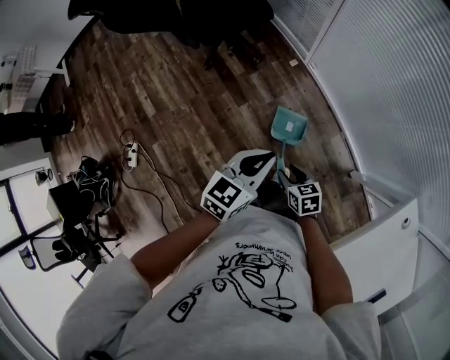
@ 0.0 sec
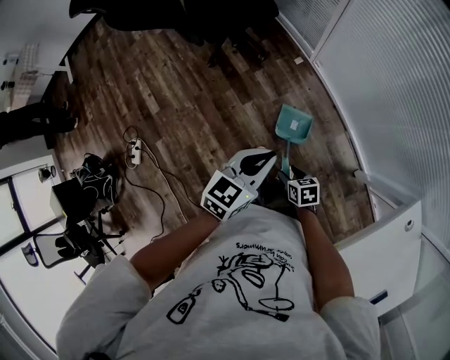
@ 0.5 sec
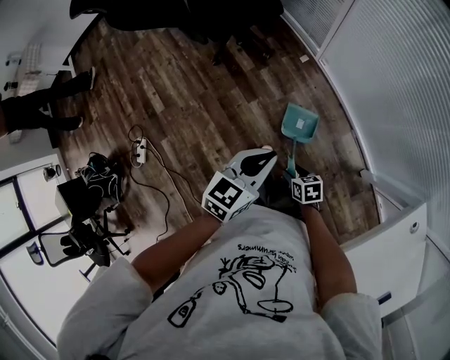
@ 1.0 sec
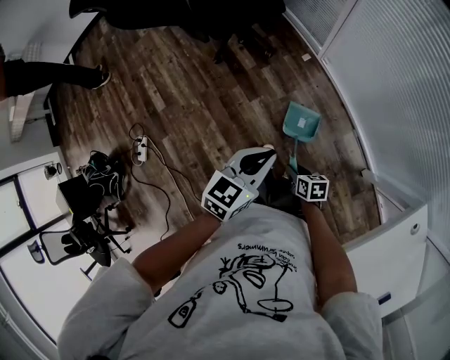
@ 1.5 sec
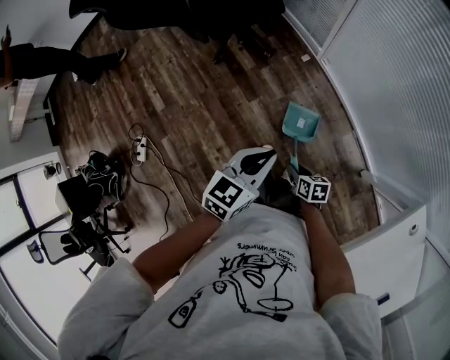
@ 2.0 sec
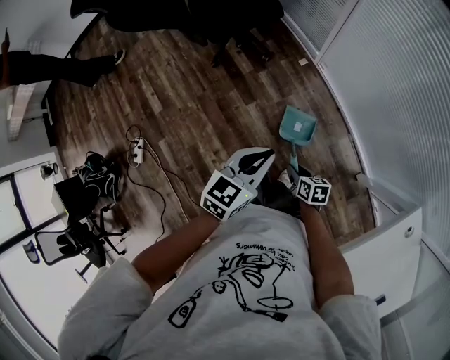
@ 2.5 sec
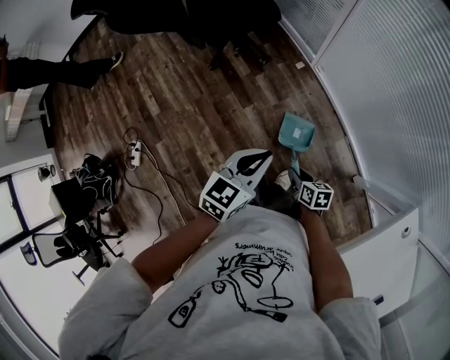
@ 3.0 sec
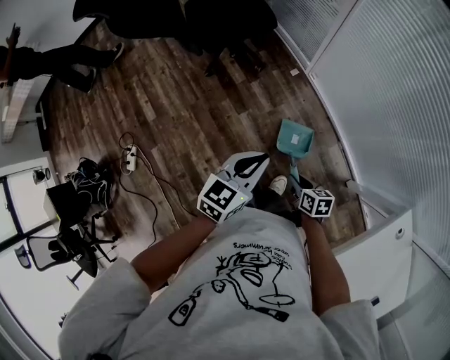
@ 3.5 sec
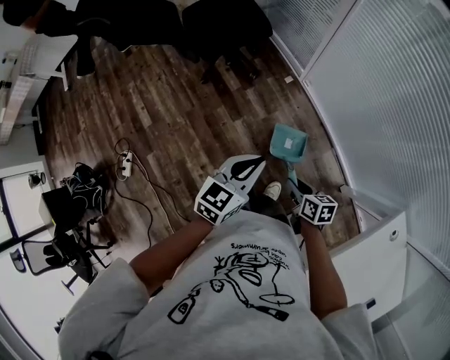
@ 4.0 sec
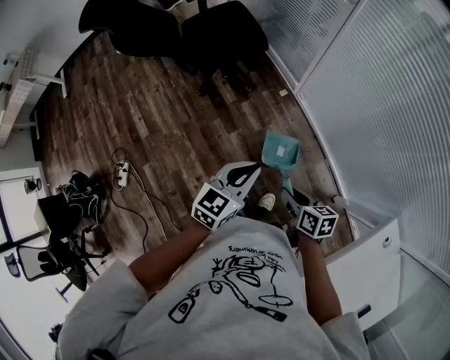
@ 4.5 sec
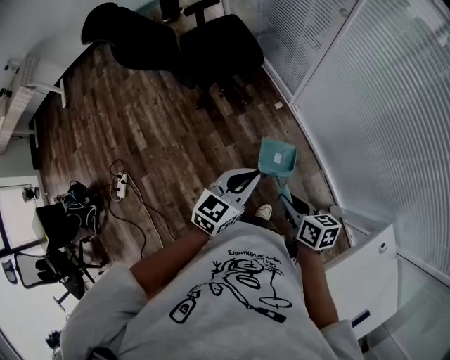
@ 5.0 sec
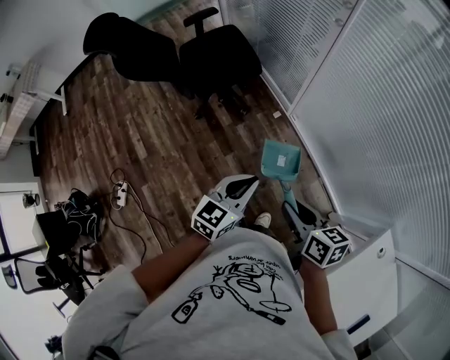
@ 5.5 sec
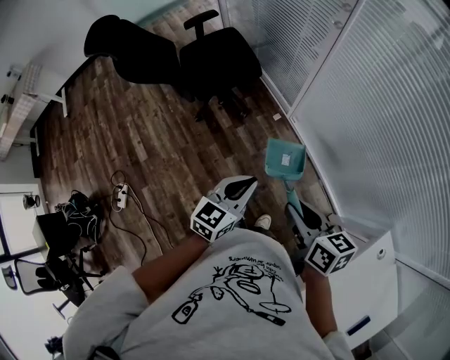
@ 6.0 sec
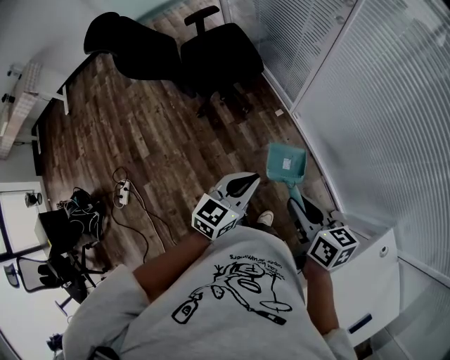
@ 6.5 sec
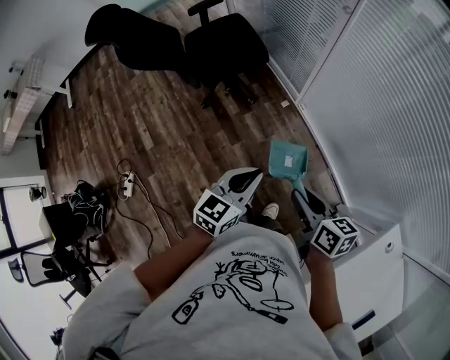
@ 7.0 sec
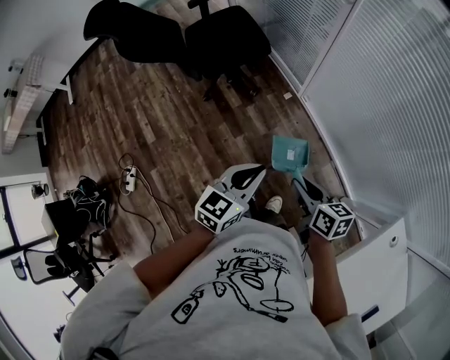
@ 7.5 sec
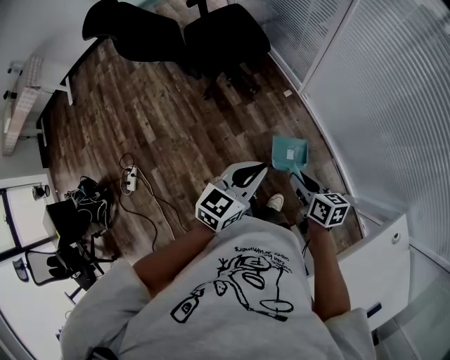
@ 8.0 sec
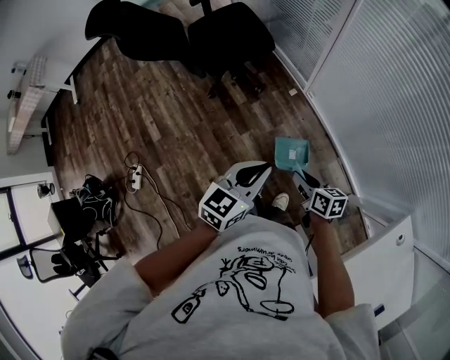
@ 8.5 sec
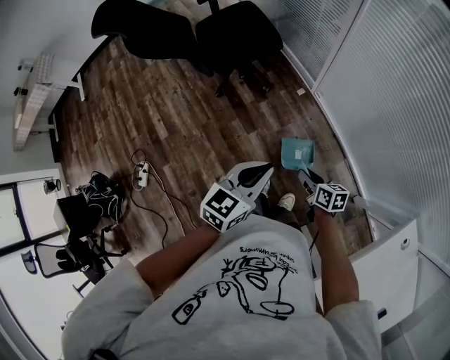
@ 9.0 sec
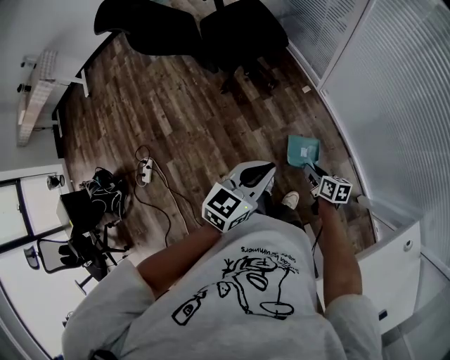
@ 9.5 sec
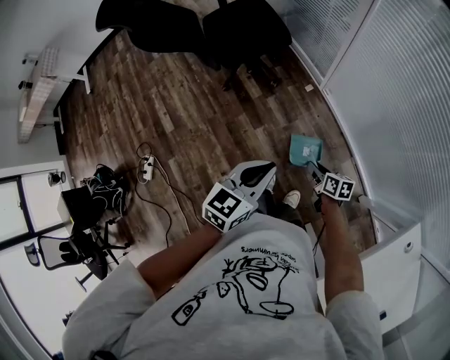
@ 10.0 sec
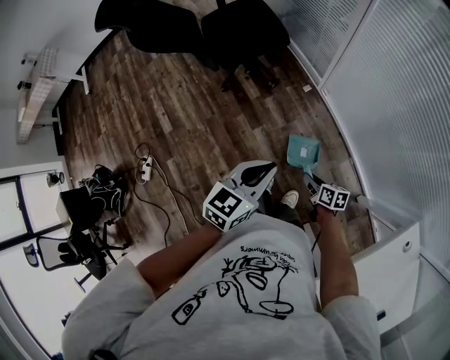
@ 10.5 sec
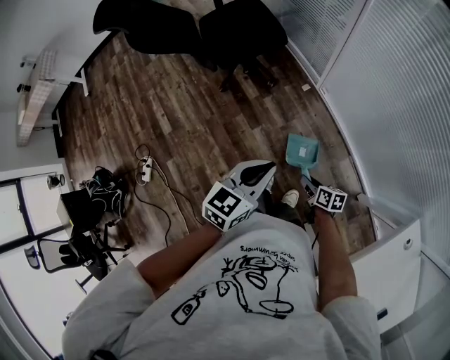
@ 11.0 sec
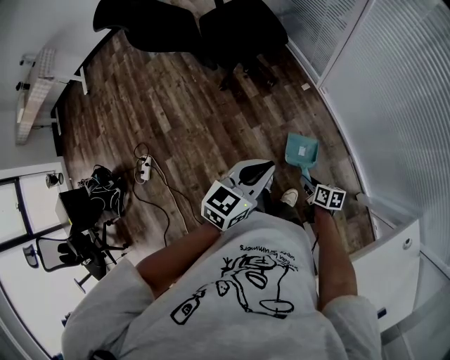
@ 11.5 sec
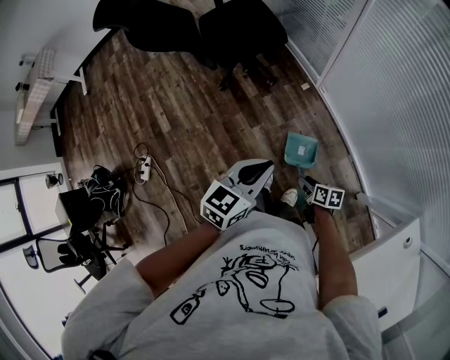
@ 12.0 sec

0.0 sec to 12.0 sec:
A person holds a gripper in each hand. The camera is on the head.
0.0 sec to 2.0 sec: The right gripper shifts about 10 cm downward, and changes its angle by about 20 degrees.
2.0 sec to 4.0 sec: The right gripper goes about 10 cm upward.
4.0 sec to 6.0 sec: The right gripper travels upward by roughly 25 cm, while the left gripper moves about 5 cm.
6.0 sec to 8.0 sec: The right gripper shifts about 15 cm downward.
8.0 sec to 10.0 sec: The right gripper shifts roughly 15 cm downward.
10.0 sec to 12.0 sec: The right gripper heads backward, covering about 5 cm.

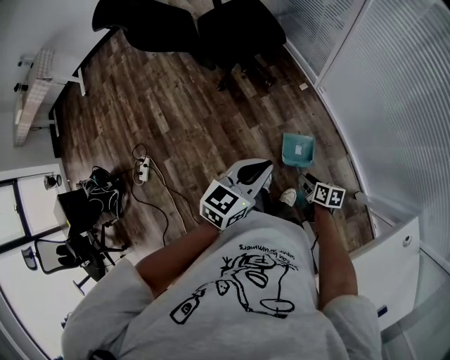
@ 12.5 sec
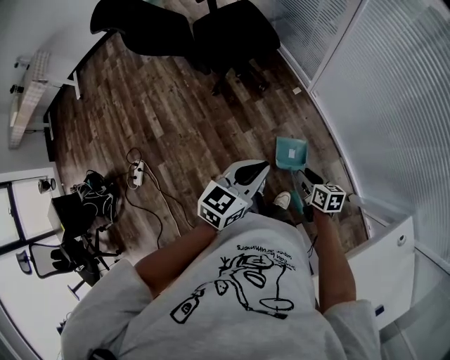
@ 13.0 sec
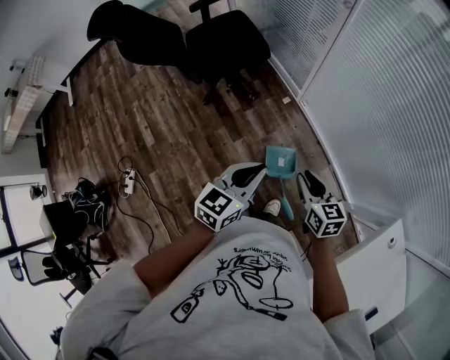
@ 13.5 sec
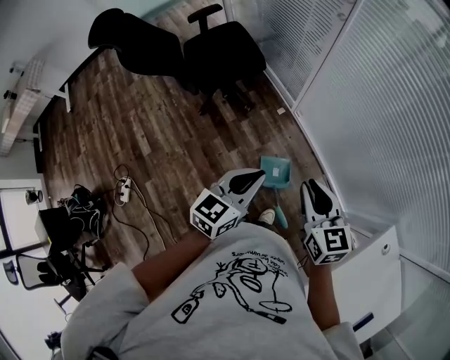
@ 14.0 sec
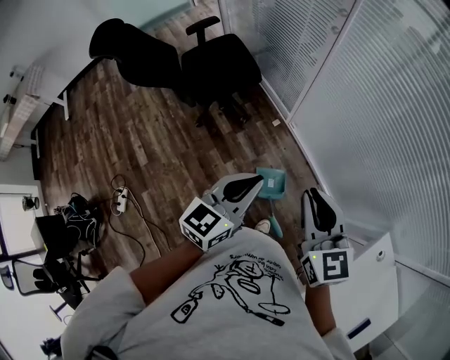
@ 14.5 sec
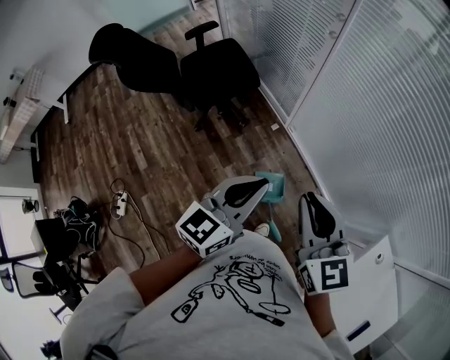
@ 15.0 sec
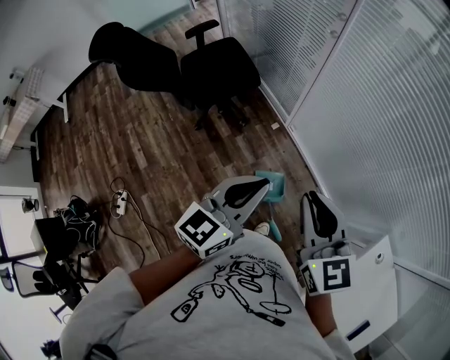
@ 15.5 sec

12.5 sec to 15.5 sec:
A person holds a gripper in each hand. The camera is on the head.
12.5 sec to 14.0 sec: The right gripper shifts about 35 cm upward, and rotates some 50 degrees; the left gripper heads upward, covering approximately 5 cm.
14.0 sec to 15.5 sec: Both grippers travel together upward, roughly 10 cm.

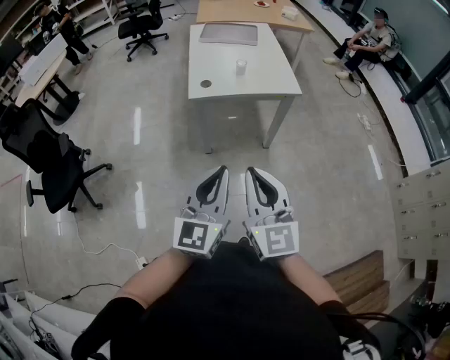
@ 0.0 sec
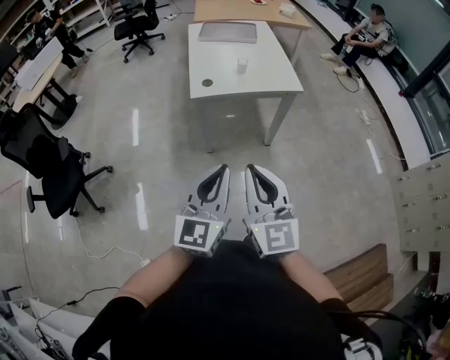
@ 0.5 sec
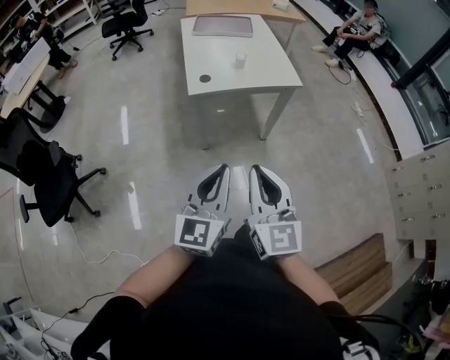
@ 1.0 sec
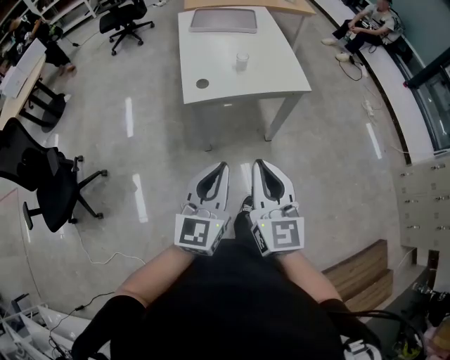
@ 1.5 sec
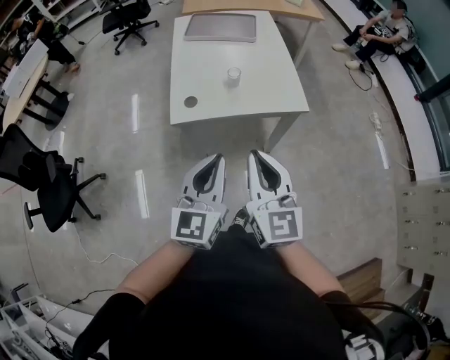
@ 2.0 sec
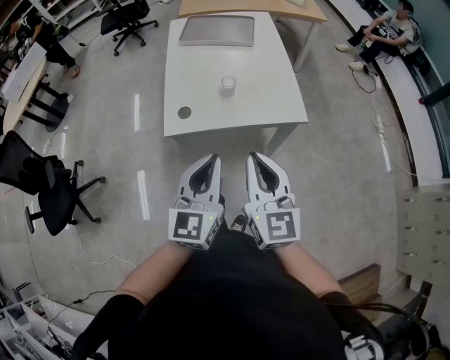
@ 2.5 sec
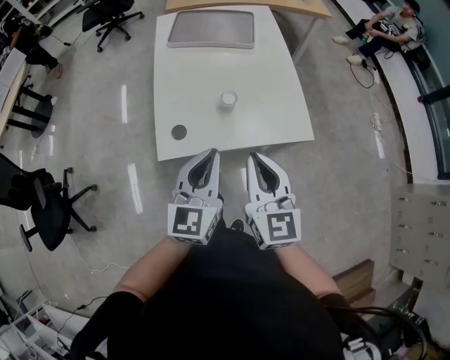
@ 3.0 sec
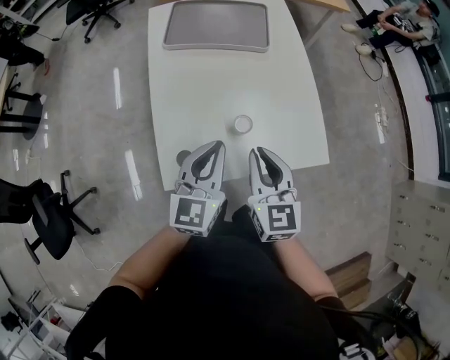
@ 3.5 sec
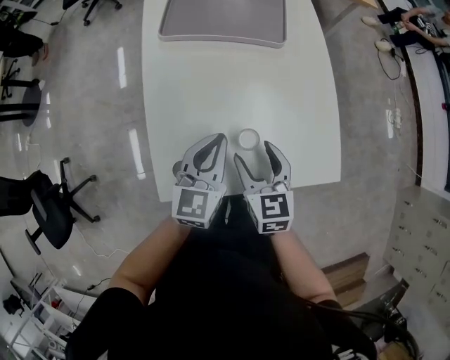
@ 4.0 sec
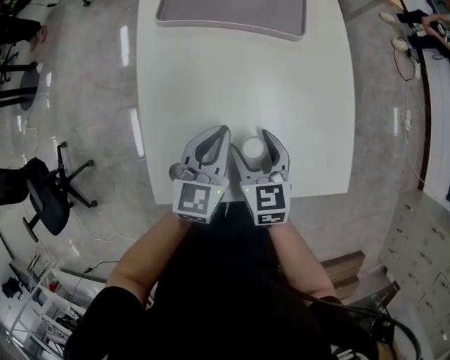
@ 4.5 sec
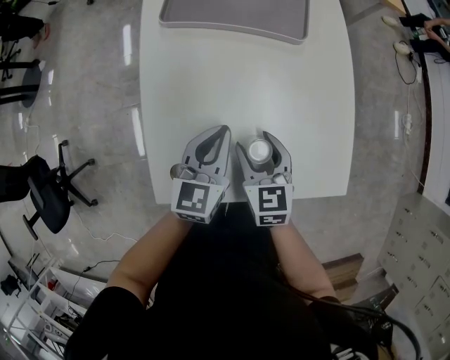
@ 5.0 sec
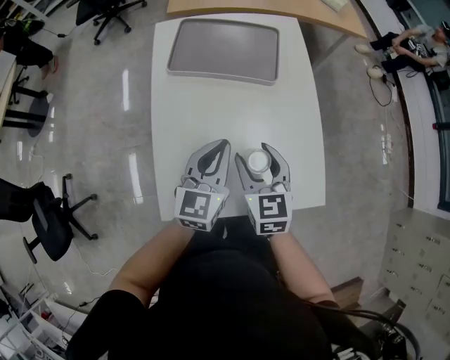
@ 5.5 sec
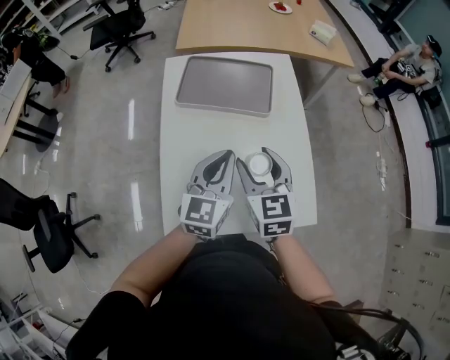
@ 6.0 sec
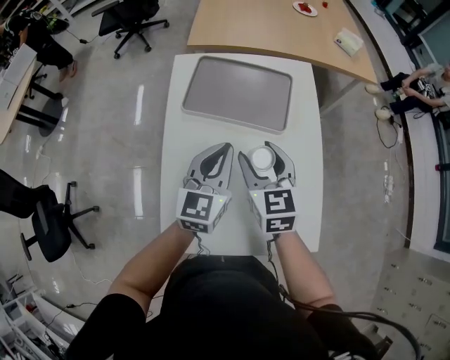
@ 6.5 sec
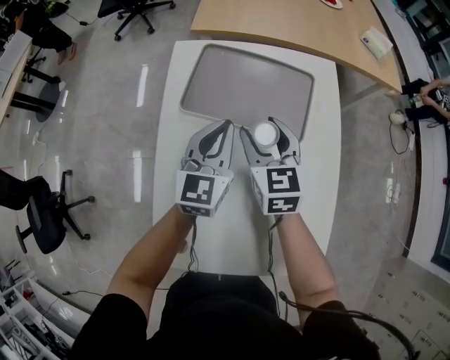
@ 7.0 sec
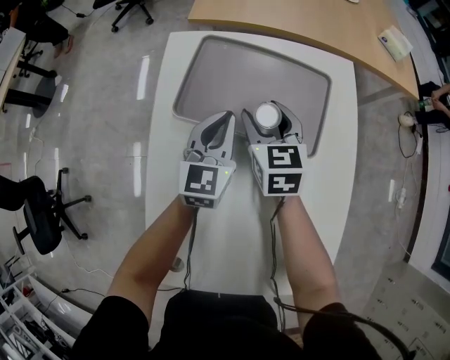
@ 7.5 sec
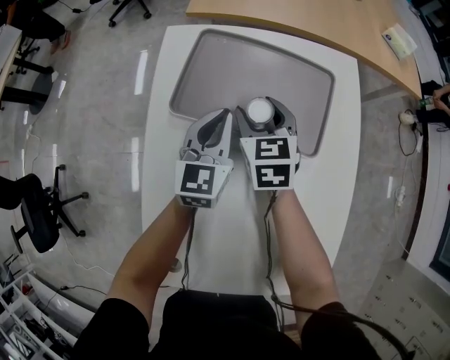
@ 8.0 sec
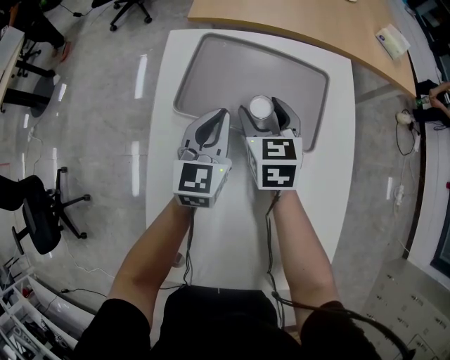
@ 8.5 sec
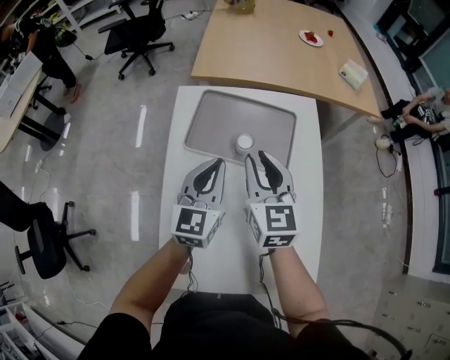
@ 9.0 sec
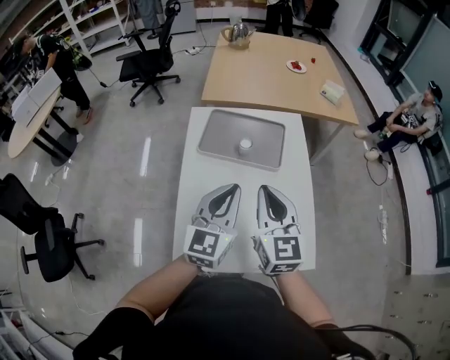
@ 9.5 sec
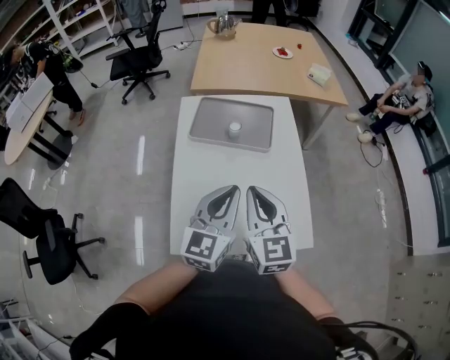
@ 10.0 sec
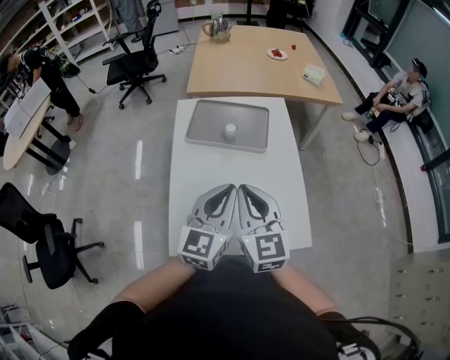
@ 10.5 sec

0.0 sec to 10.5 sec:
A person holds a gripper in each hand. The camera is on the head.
0.0 sec to 2.0 sec: The two grippers go some 30 cm forward.
2.0 sec to 4.0 sec: Both grippers are carried forward, roughly 50 cm. The two grippers go approximately 25 cm downward. The right gripper tilts its fingers some 30 degrees downward, and opens its fingers.
4.0 sec to 6.5 sec: Both grippers move forward and upward, roughly 20 cm.
6.5 sec to 8.5 sec: Both grippers move forward and downward, about 25 cm.
8.5 sec to 10.5 sec: Both grippers travel together backward and upward, roughly 50 cm. The right gripper changes its angle by approximately 20 degrees, and closes.

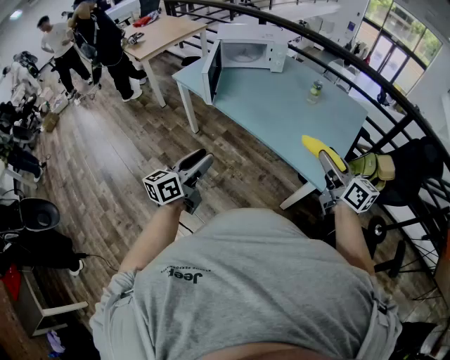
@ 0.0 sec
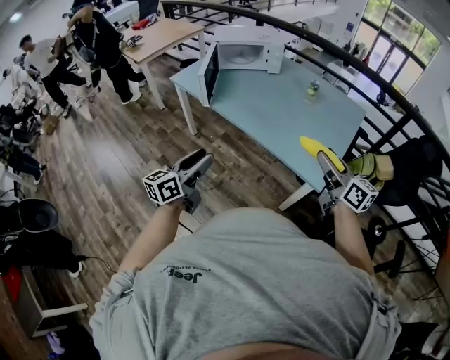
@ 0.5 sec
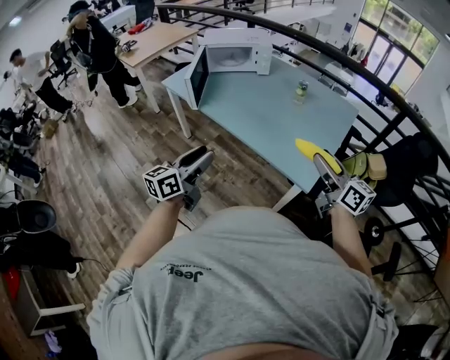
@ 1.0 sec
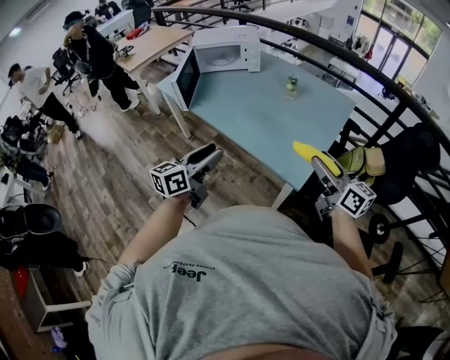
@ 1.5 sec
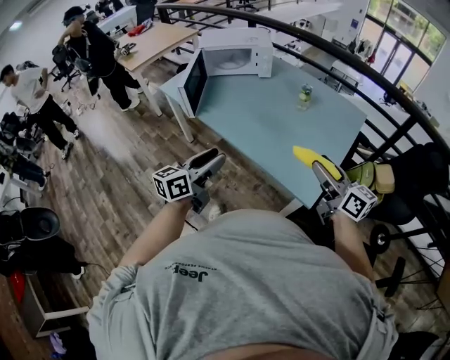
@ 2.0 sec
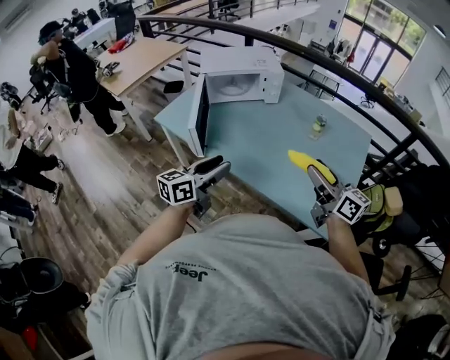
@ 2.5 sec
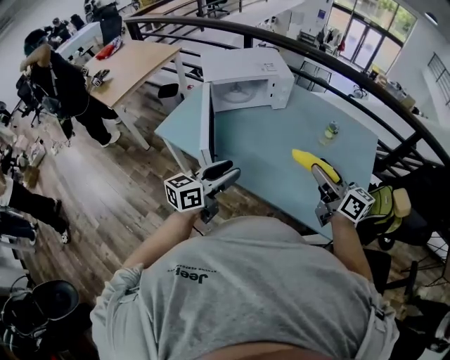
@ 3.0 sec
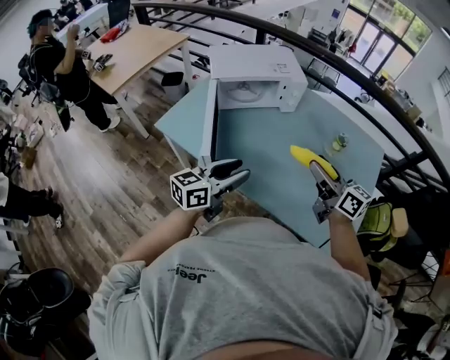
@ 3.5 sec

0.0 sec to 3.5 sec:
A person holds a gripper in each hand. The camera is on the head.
0.0 sec to 2.0 sec: The right gripper travels to the right and forward by roughly 10 cm, while the left gripper is displaced to the right and forward by roughly 15 cm.
2.0 sec to 3.5 sec: The grippers both shift forward and to the left by approximately 35 cm.
